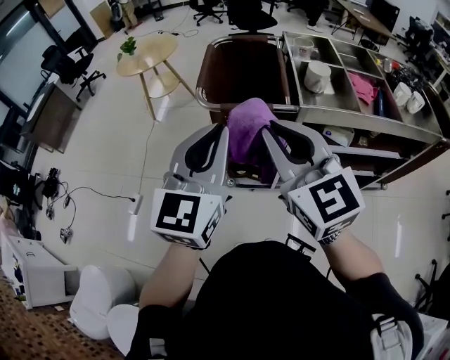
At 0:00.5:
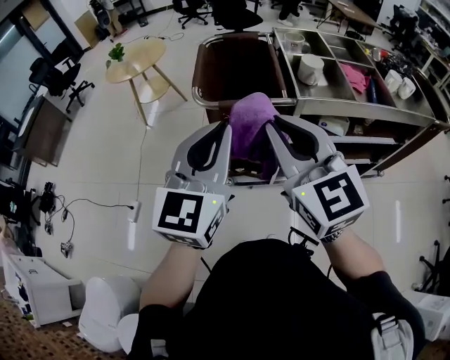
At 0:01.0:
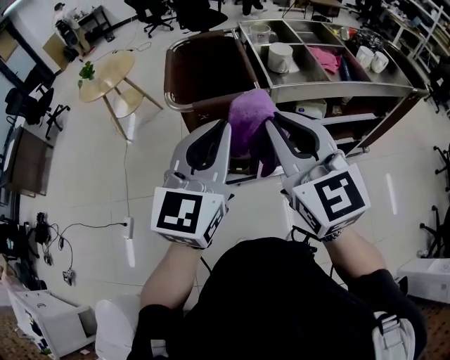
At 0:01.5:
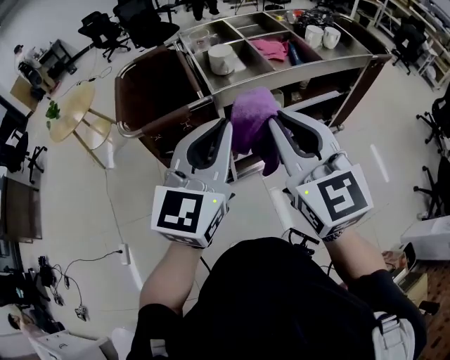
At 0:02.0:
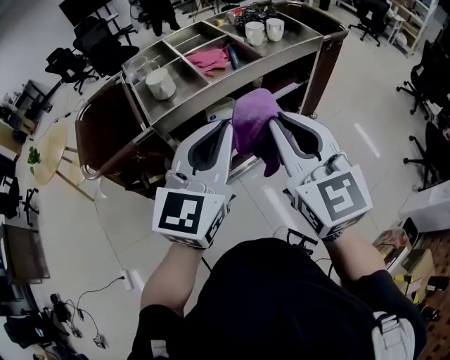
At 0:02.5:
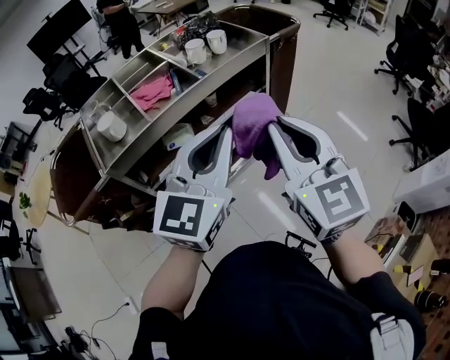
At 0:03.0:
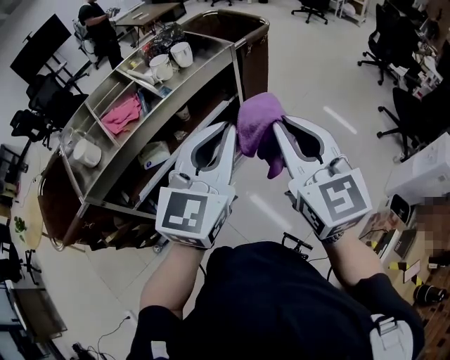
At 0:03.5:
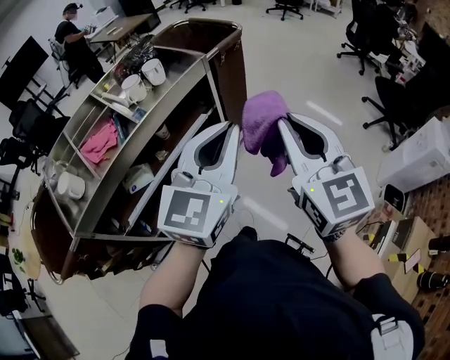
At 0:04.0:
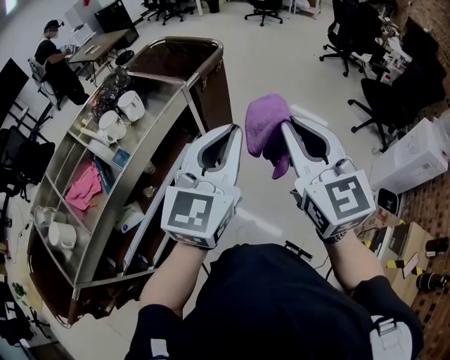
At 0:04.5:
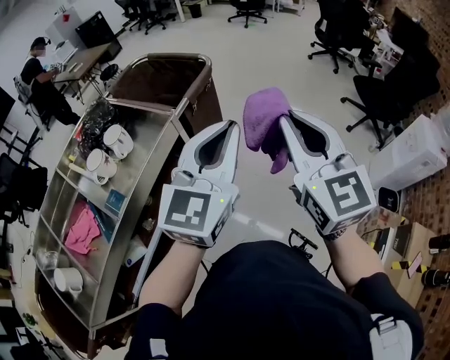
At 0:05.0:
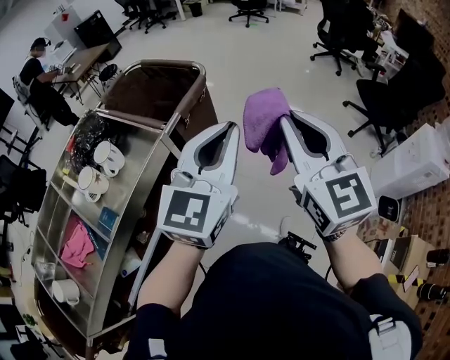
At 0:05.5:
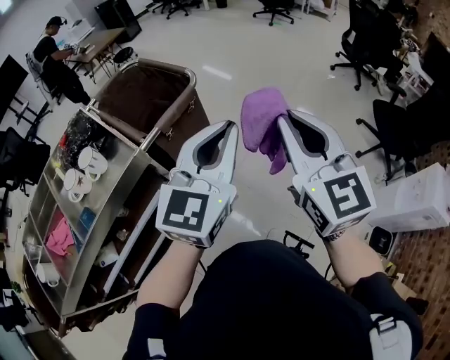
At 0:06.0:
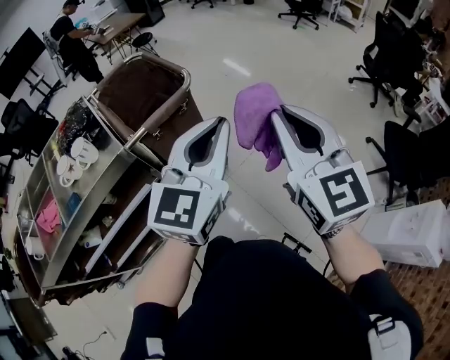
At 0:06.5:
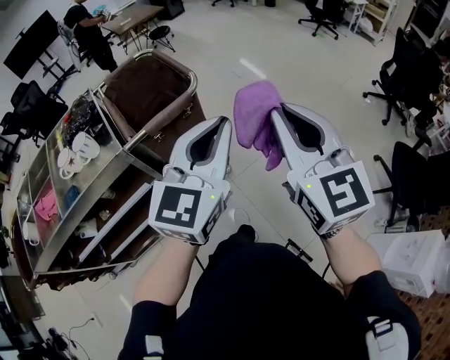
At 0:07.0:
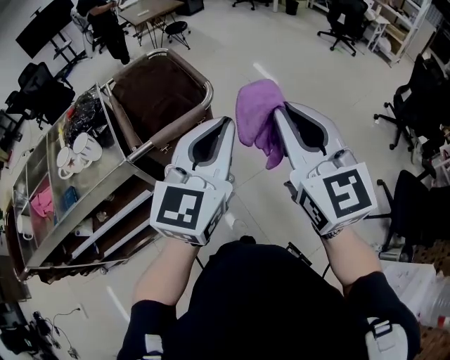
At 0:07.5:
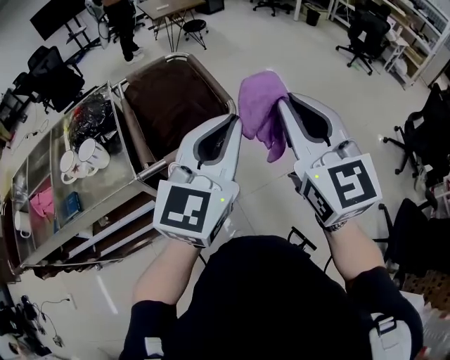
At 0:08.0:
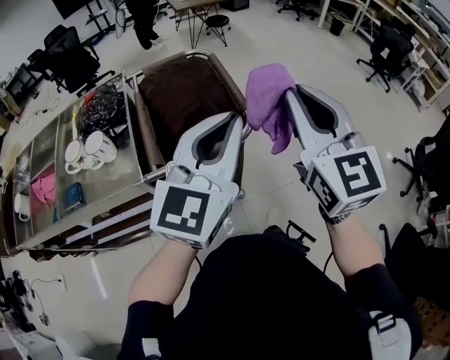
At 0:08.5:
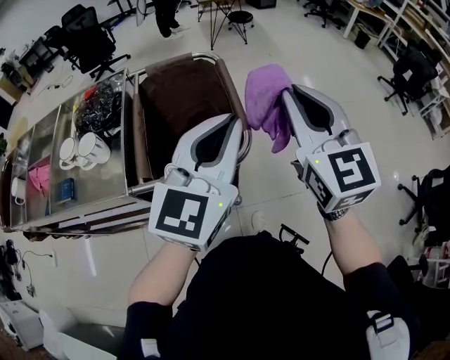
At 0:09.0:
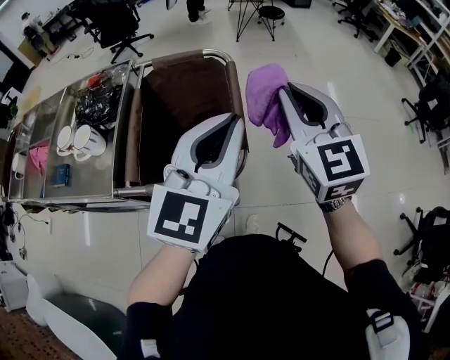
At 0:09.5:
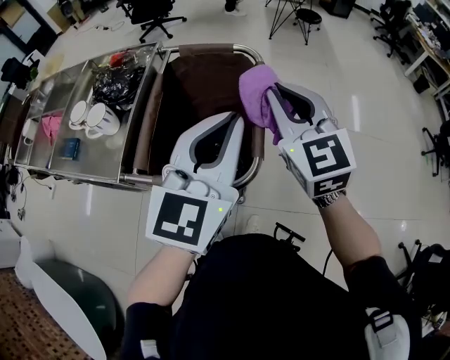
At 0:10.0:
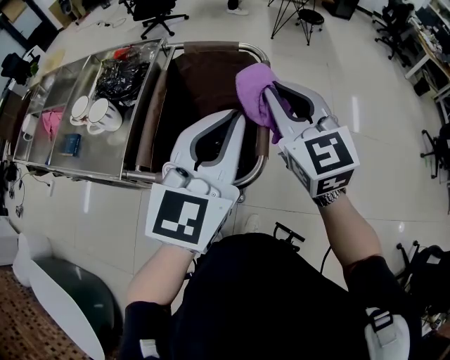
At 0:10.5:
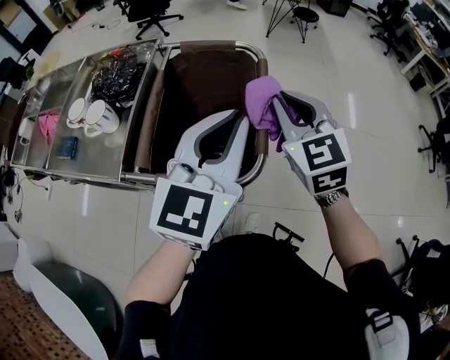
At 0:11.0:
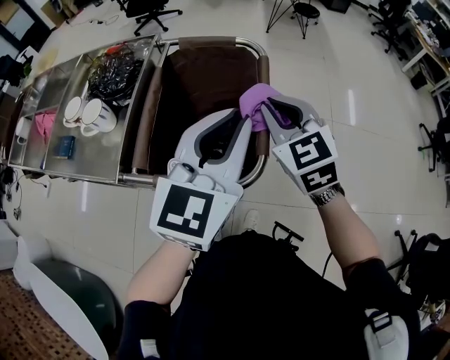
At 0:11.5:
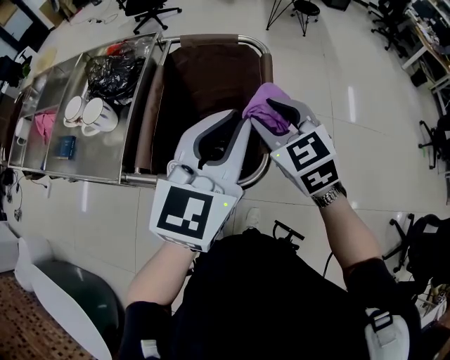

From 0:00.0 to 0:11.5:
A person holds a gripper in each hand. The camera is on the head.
From 0:00.0 to 0:02.0: The right gripper ends up roughly 35 cm from where it was, and changes its angle by some 40 degrees. Meanwhile the left gripper moves approximately 35 cm, and rotates some 40 degrees.
From 0:02.0 to 0:04.0: The two grippers travel together, some 40 cm. The left gripper turns by about 30 degrees, while the right gripper rotates about 30 degrees.
From 0:04.0 to 0:06.0: The grippers both shift forward and to the right by approximately 35 cm.
From 0:06.0 to 0:07.5: Both grippers travel together forward, roughly 20 cm.
From 0:07.5 to 0:09.5: The left gripper changes place by about 20 cm, and changes its angle by roughly 40 degrees. The right gripper ends up about 30 cm from where it was, and changes its angle by about 40 degrees.
From 0:09.5 to 0:11.5: The right gripper travels downward and to the left by some 15 cm, changes its angle by approximately 20 degrees, and opens up; the left gripper changes place by some 5 cm.

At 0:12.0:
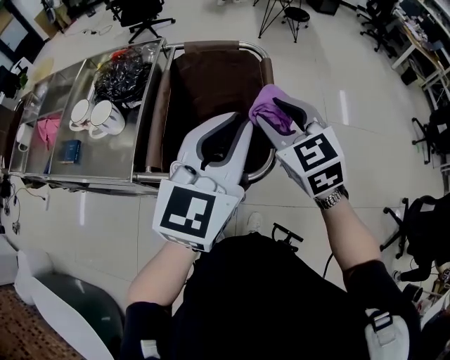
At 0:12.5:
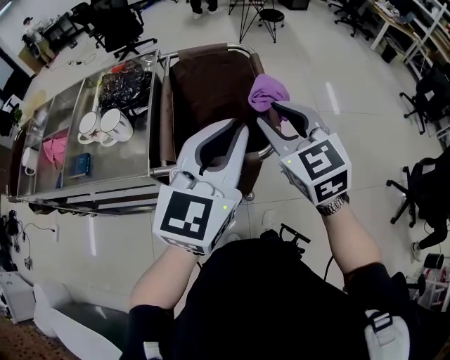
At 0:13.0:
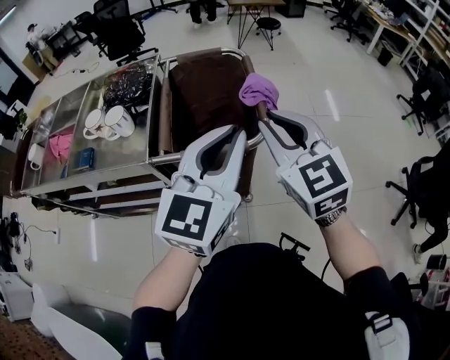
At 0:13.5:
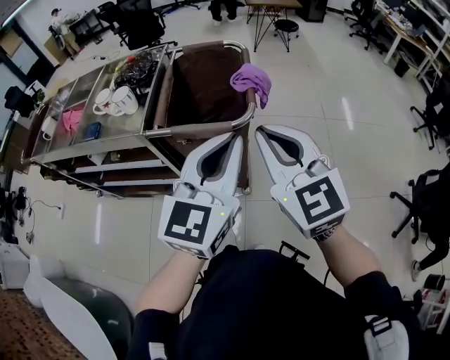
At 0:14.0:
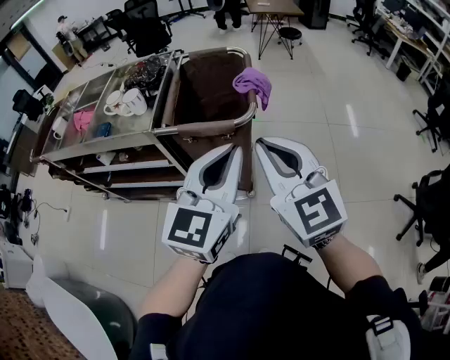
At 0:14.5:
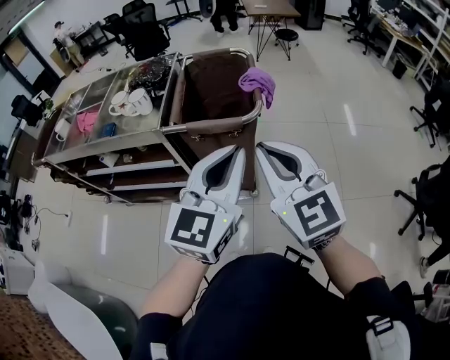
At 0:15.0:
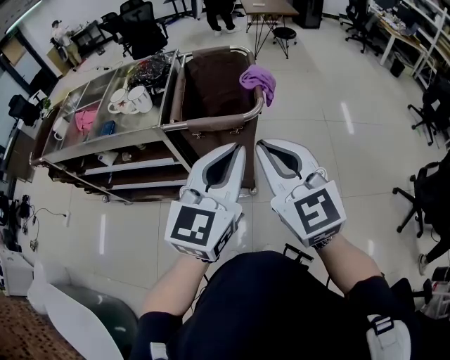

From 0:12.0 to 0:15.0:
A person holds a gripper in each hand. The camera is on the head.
From 0:12.0 to 0:13.5: Both grippers move backward, approximately 25 cm. The right gripper rotates about 20 degrees, and closes up.
From 0:13.5 to 0:15.0: Both grippers move backward, approximately 10 cm.

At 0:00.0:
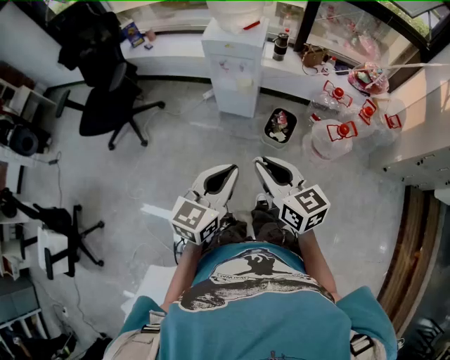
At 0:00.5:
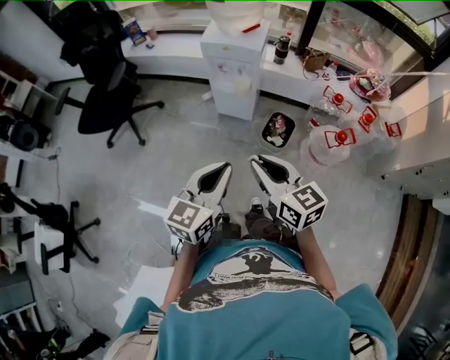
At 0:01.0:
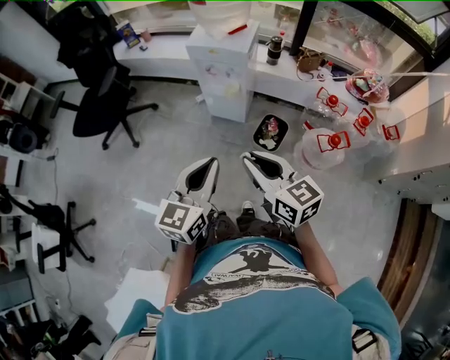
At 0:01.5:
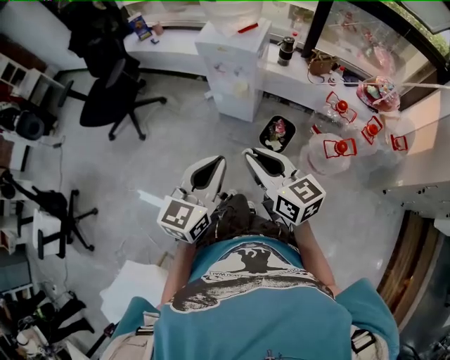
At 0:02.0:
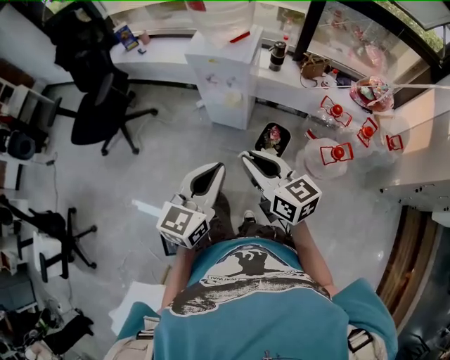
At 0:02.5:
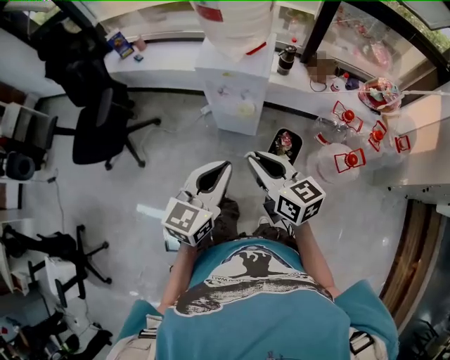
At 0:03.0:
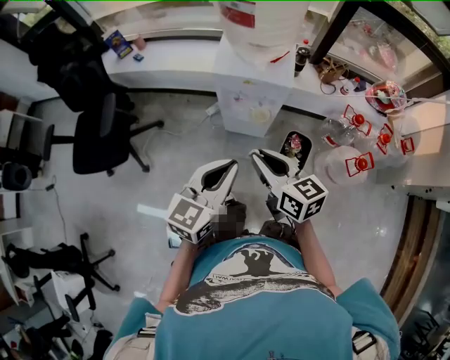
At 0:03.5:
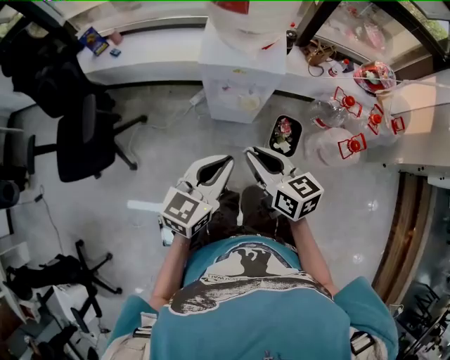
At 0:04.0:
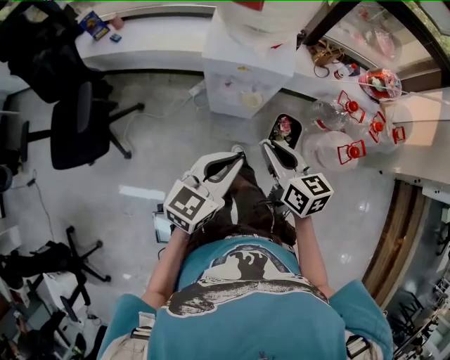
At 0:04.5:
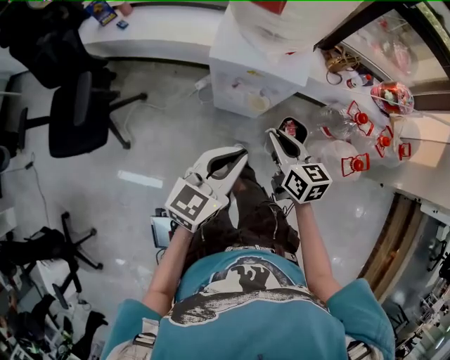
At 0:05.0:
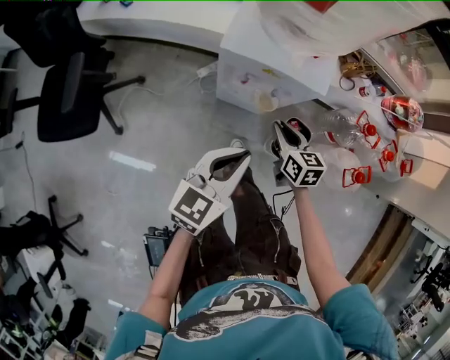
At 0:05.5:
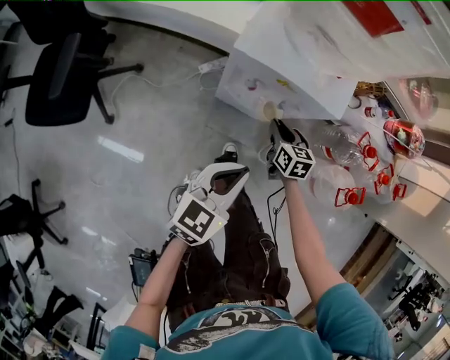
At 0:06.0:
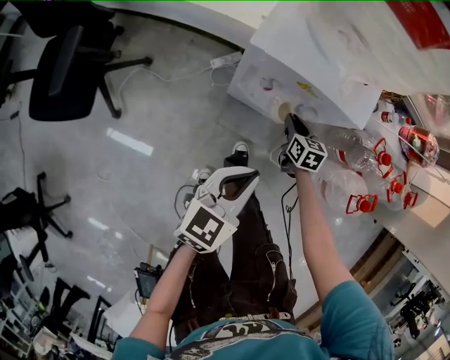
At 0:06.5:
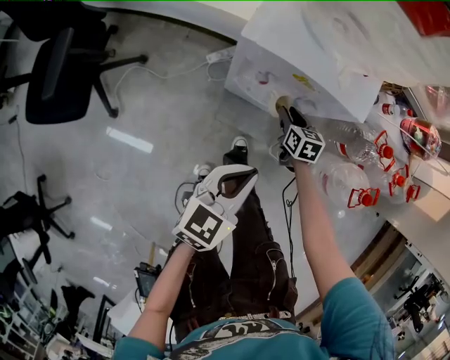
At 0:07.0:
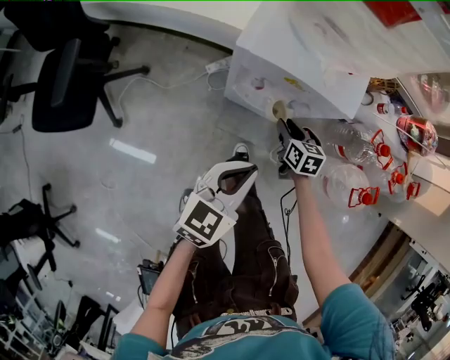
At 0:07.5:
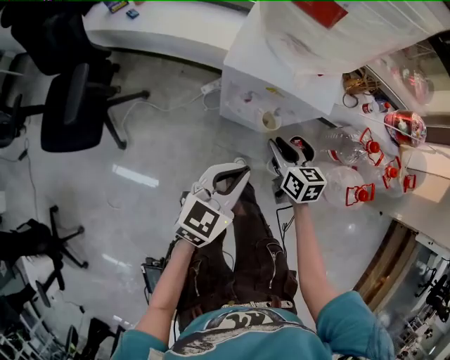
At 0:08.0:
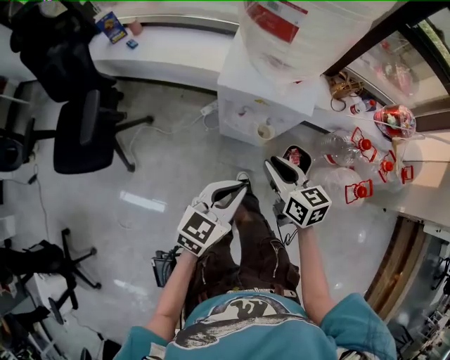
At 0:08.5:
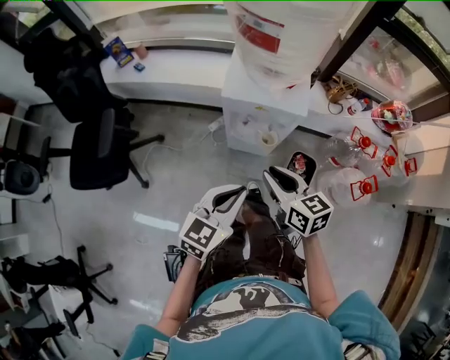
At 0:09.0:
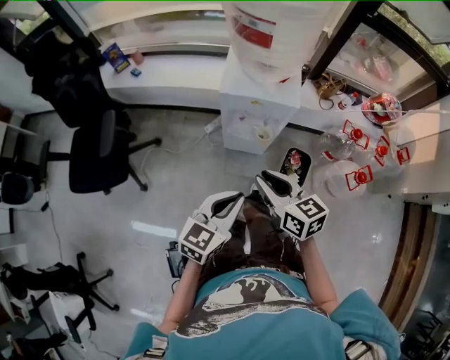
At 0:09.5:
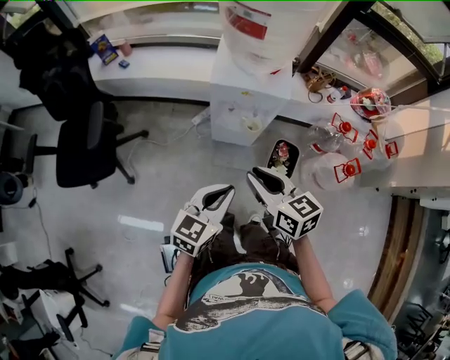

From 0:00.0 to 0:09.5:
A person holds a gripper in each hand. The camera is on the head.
From 0:00.0 to 0:02.0: Both grippers move forward and to the right, roughly 15 cm.
From 0:02.0 to 0:04.0: The grippers both shift forward and to the left by about 25 cm. The left gripper changes its angle by roughly 30 degrees; the right gripper rotates roughly 20 degrees.
From 0:04.0 to 0:05.5: The right gripper is displaced downward and forward by about 35 cm, while the left gripper goes some 15 cm downward and forward.
From 0:05.5 to 0:07.5: The right gripper moves upward and backward, about 10 cm.
From 0:07.5 to 0:09.5: The right gripper travels upward and backward by roughly 30 cm, while the left gripper is displaced backward and upward by about 15 cm.

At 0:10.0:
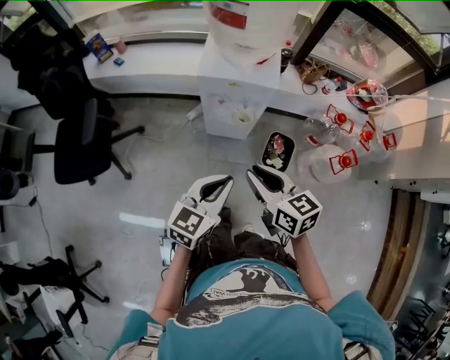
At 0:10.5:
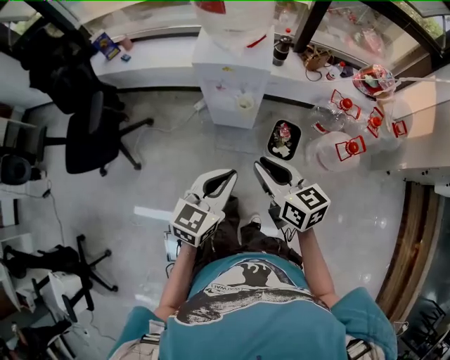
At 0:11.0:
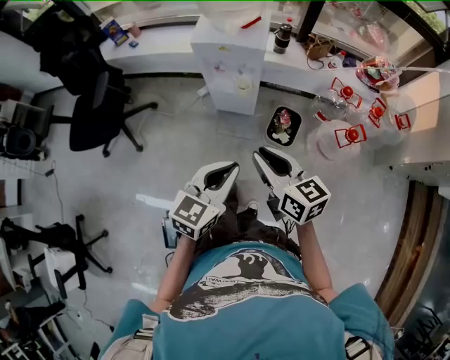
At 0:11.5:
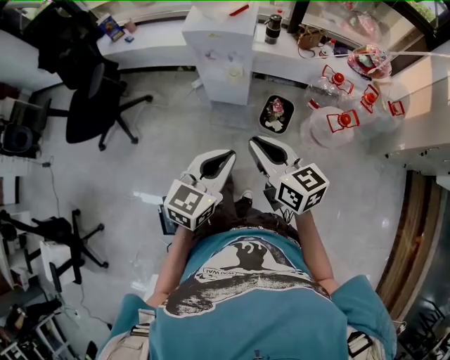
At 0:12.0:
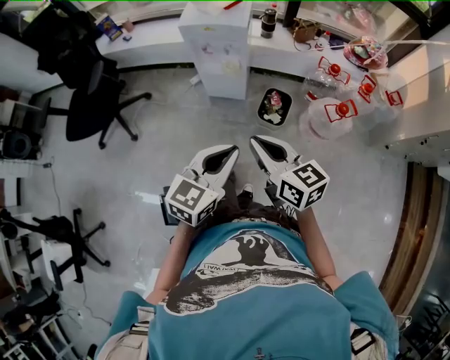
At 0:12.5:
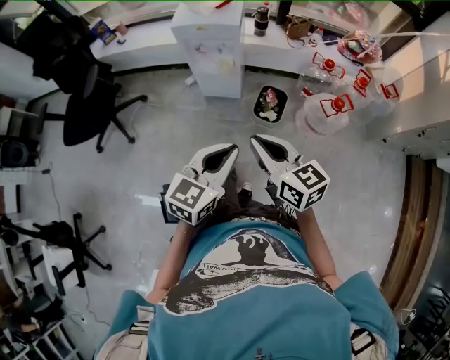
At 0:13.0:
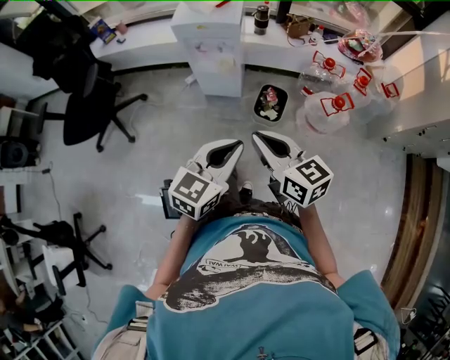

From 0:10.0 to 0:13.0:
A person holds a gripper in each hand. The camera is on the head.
From 0:10.0 to 0:11.5: Both grippers move backward and to the right, about 20 cm.
From 0:11.5 to 0:13.0: The grippers make only small movements.
